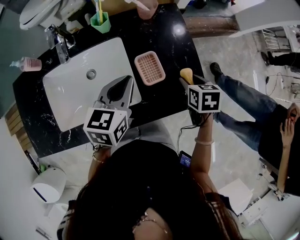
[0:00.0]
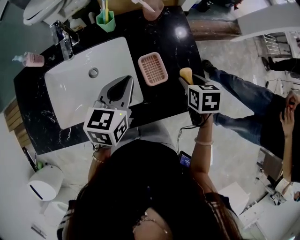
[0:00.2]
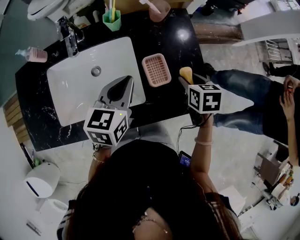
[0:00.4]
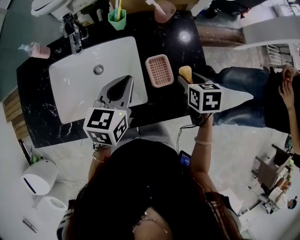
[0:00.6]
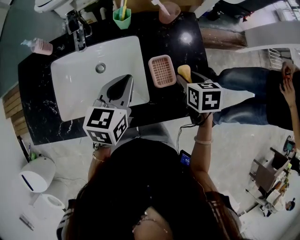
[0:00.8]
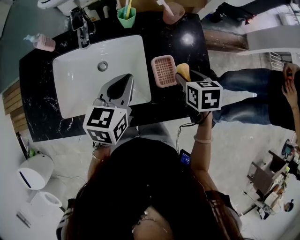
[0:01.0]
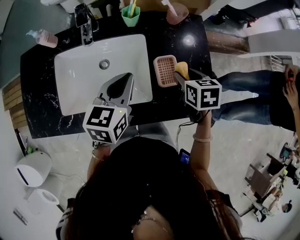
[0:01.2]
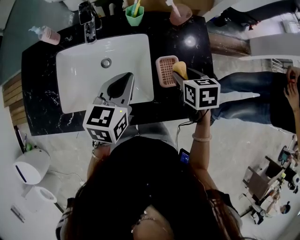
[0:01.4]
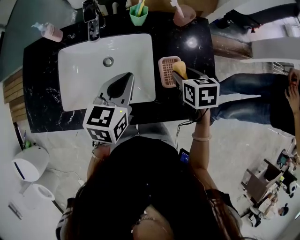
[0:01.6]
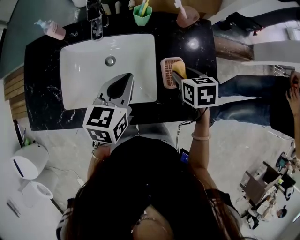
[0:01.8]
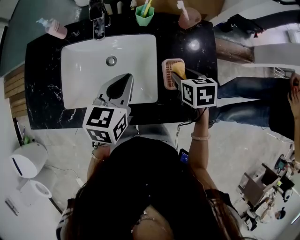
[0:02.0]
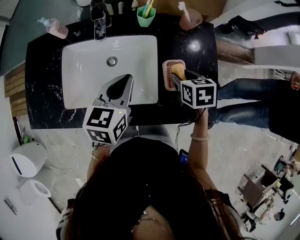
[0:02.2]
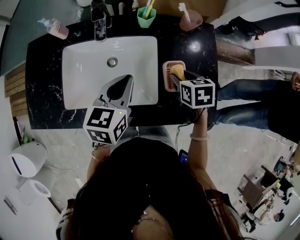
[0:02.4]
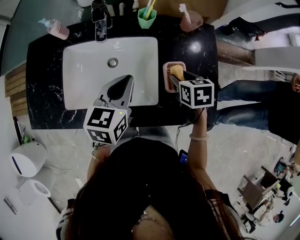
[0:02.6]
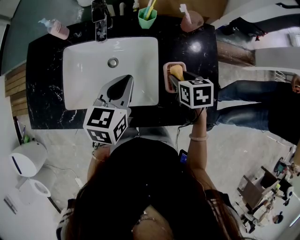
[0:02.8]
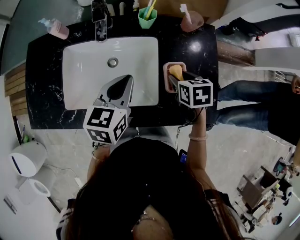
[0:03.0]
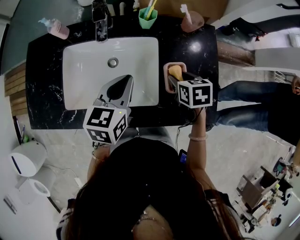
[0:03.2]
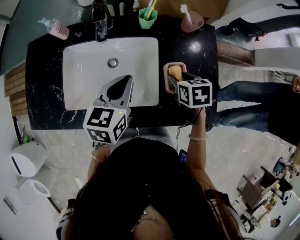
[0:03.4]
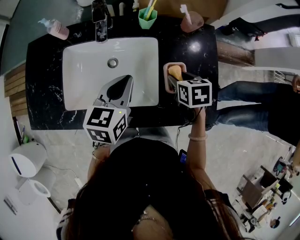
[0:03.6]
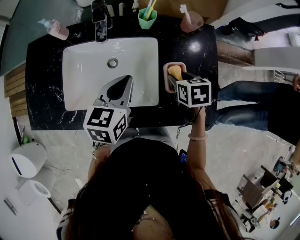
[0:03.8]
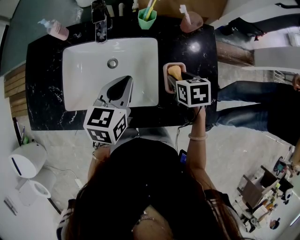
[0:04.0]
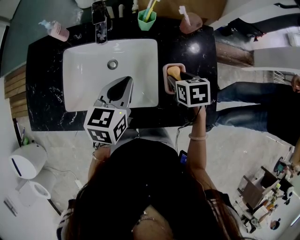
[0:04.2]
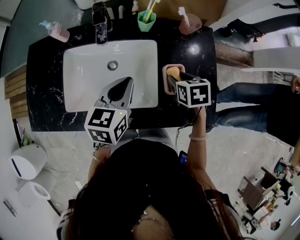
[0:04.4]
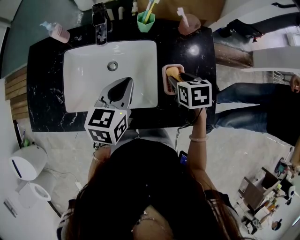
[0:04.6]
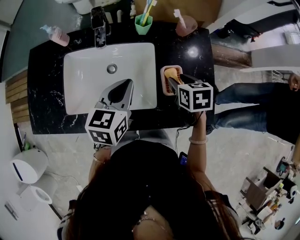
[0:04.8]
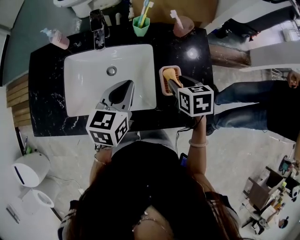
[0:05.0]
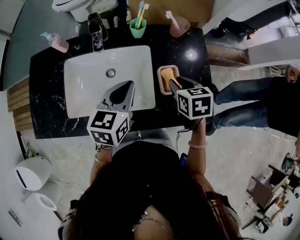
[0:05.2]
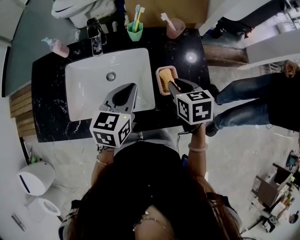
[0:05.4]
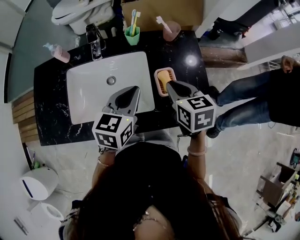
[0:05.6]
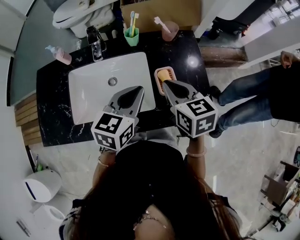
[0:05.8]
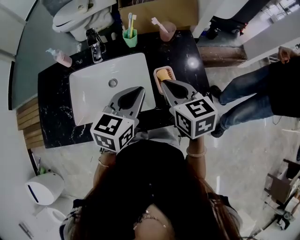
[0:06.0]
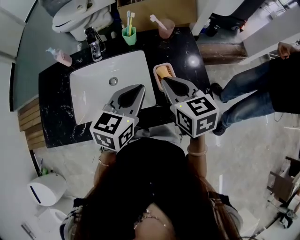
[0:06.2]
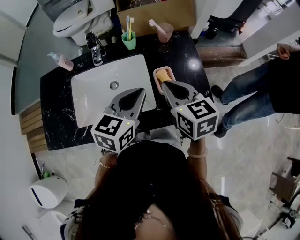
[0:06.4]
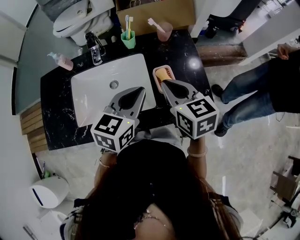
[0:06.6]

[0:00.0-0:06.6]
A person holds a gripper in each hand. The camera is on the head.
0:00.0 to 0:01.6: The left gripper moves to the left, about 10 cm. Meanwhile the right gripper is displaced to the left by about 10 cm.
0:01.6 to 0:05.0: There are only small adjustments of the grippers.
0:05.0 to 0:06.6: The right gripper travels upward and backward by some 15 cm, swivels roughly 30 degrees, and closes. The left gripper travels to the right, upward and backward by roughly 10 cm.

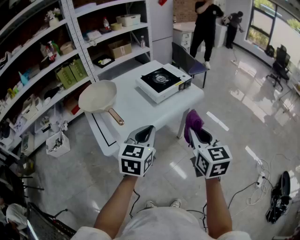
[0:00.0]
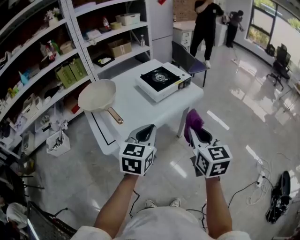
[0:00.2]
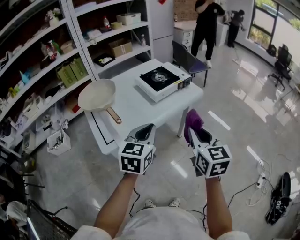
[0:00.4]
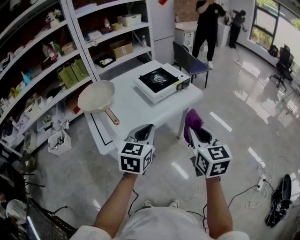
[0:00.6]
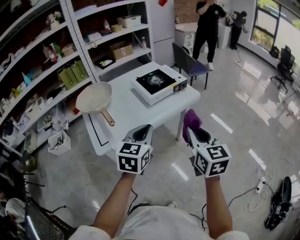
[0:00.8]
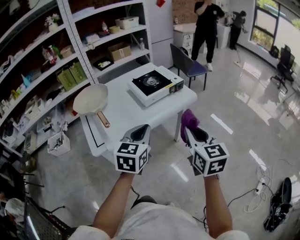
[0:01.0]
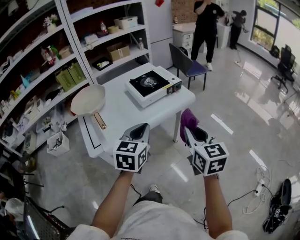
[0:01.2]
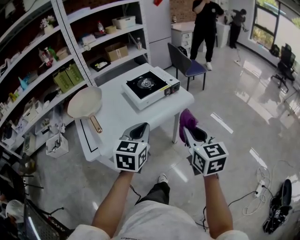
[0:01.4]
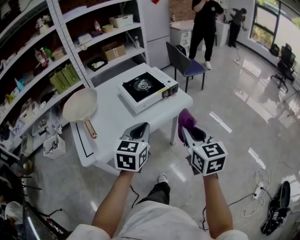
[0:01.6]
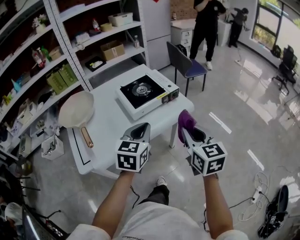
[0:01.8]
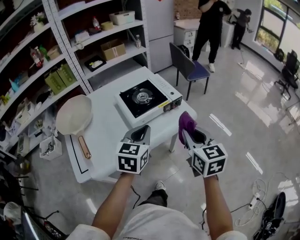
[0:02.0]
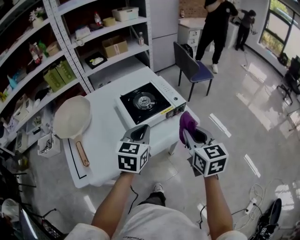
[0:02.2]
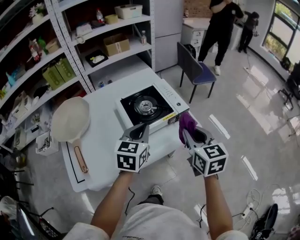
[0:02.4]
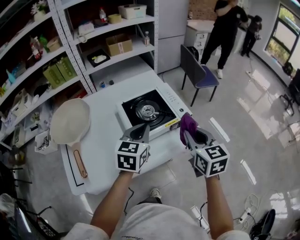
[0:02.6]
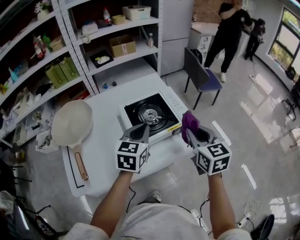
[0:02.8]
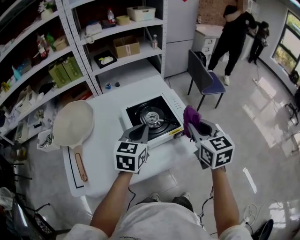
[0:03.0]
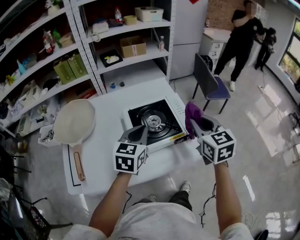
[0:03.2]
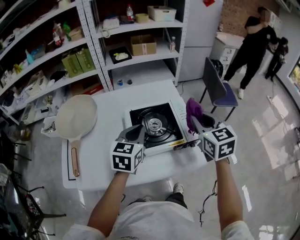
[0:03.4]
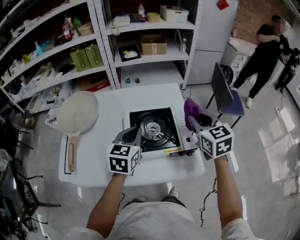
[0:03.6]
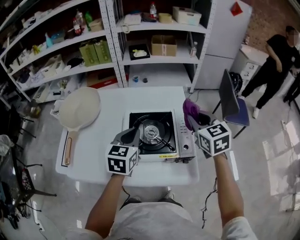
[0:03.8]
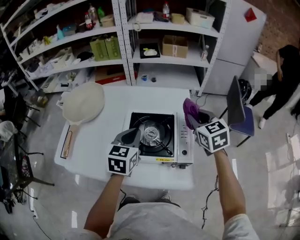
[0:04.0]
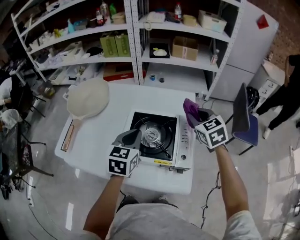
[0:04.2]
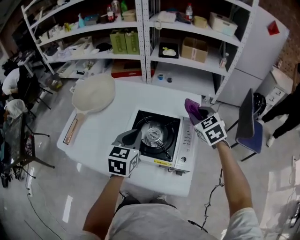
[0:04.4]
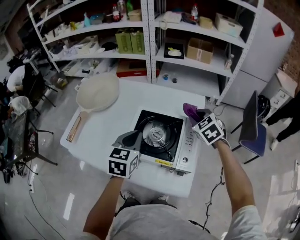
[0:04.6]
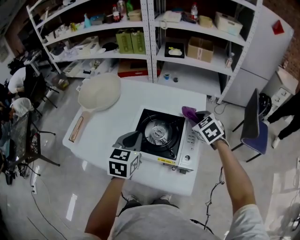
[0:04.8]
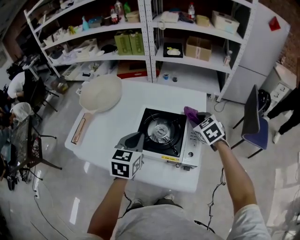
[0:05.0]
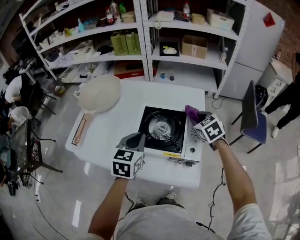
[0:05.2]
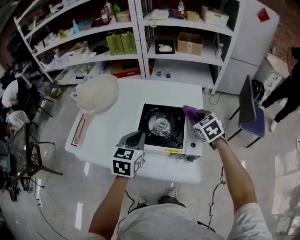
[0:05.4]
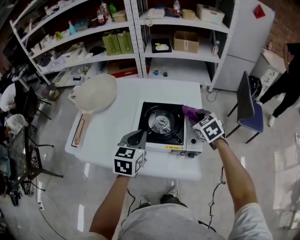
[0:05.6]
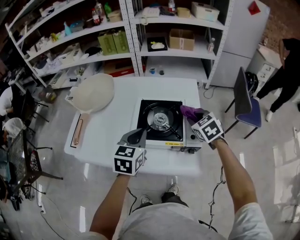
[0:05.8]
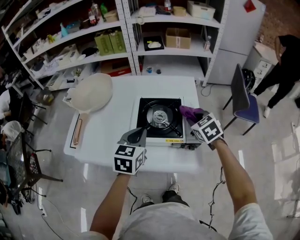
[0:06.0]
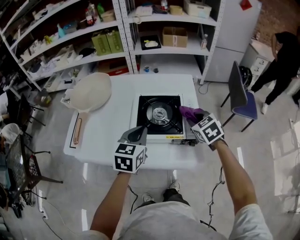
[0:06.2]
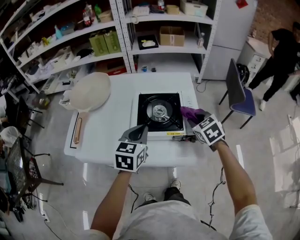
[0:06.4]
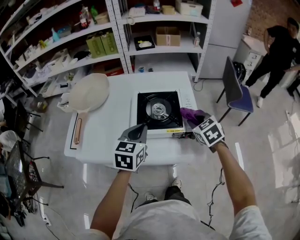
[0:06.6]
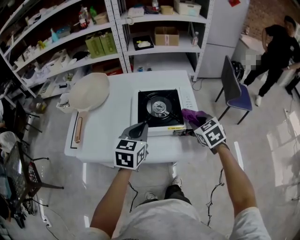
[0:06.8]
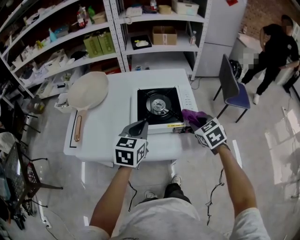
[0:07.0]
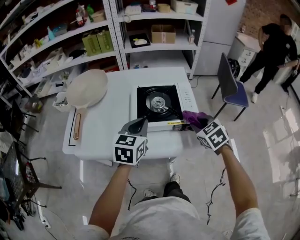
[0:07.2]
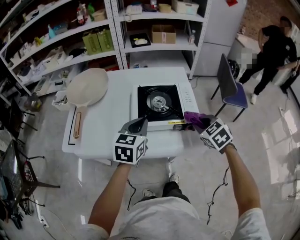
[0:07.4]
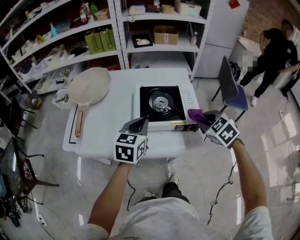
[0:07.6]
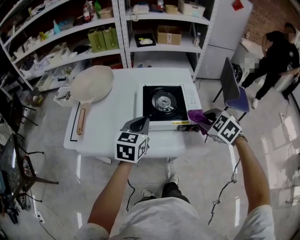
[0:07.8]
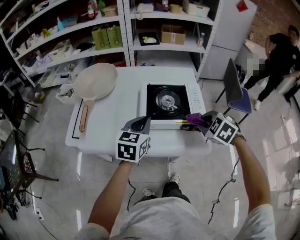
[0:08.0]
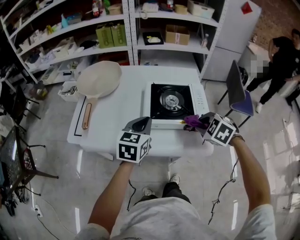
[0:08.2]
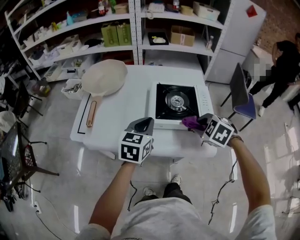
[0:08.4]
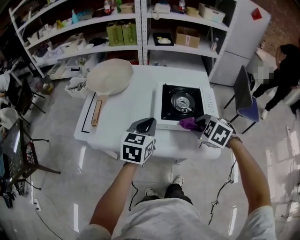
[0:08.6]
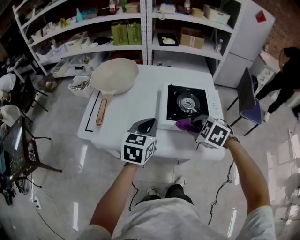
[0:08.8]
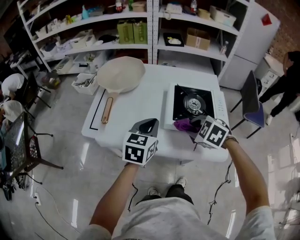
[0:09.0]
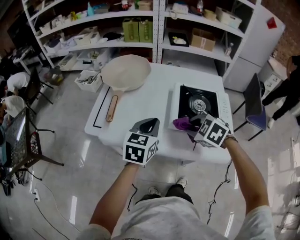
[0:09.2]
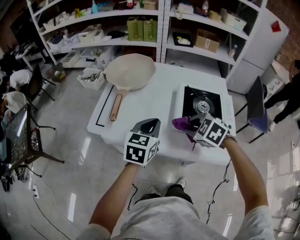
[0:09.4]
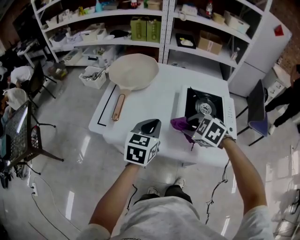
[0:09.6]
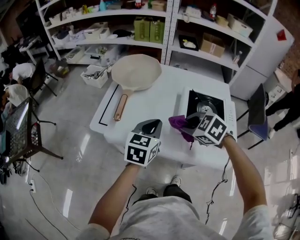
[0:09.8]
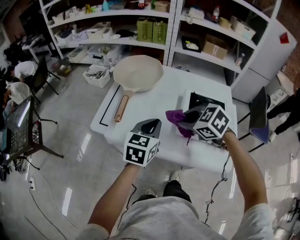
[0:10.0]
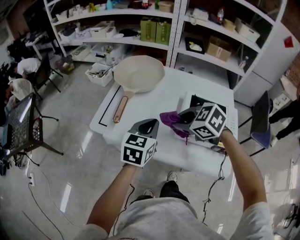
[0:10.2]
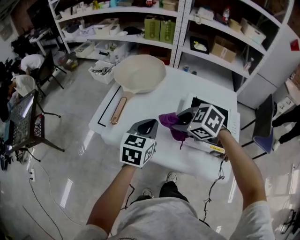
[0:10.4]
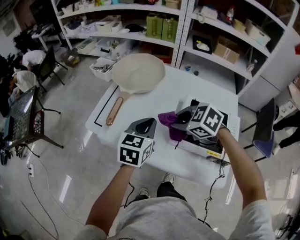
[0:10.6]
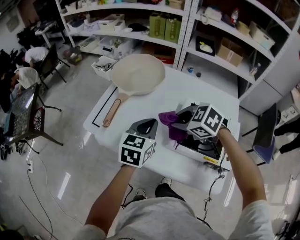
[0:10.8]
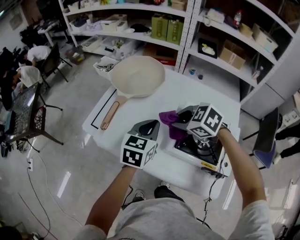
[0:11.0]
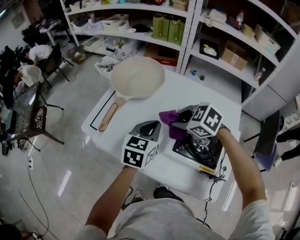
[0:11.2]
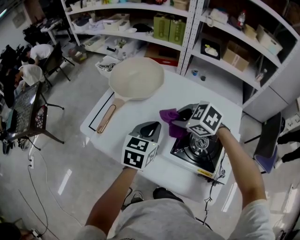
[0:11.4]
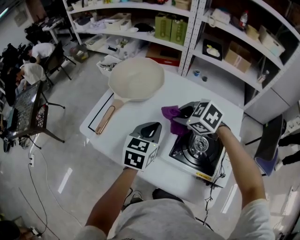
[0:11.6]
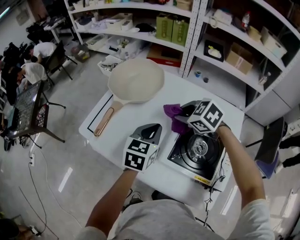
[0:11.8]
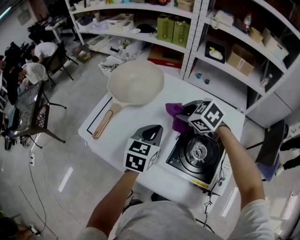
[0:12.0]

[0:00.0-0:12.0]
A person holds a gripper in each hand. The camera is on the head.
0:00.0 to 0:01.6: The two grippers go approximately 15 cm to the right and forward.
0:01.6 to 0:03.0: Both grippers move forward, approximately 30 cm.
0:03.0 to 0:04.4: The left gripper moves about 5 cm, and changes its angle by roughly 40 degrees, while the right gripper changes place by about 30 cm, and changes its angle by roughly 50 degrees.
0:04.4 to 0:06.0: The left gripper heads backward, covering about 5 cm, while the right gripper heads backward and downward, covering about 15 cm.
0:06.0 to 0:07.6: The right gripper travels backward by approximately 15 cm.
0:07.6 to 0:09.0: The left gripper is displaced to the left by some 10 cm, while the right gripper travels to the left by about 20 cm, and rotates some 30 degrees.
0:09.0 to 0:10.4: The left gripper is displaced forward by roughly 5 cm, while the right gripper goes about 15 cm forward and to the left, and rotates roughly 20 degrees.
0:10.4 to 0:12.0: Both grippers move to the right and forward, some 15 cm.

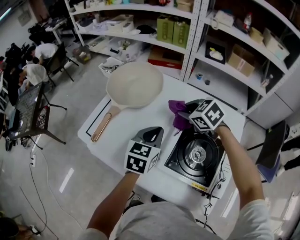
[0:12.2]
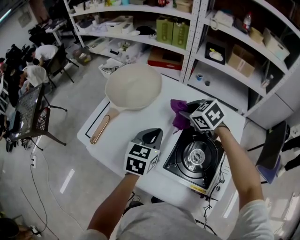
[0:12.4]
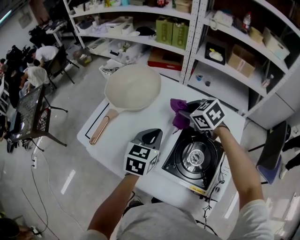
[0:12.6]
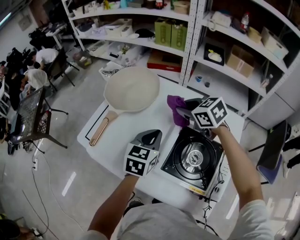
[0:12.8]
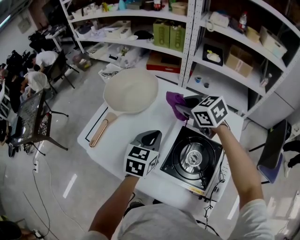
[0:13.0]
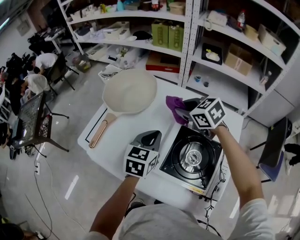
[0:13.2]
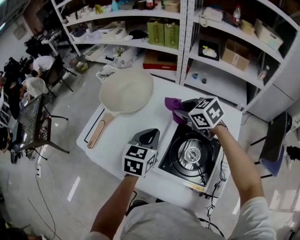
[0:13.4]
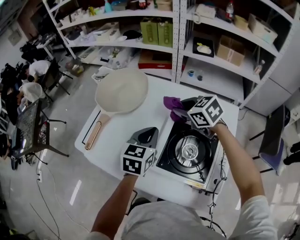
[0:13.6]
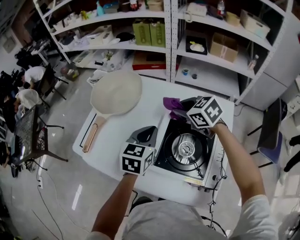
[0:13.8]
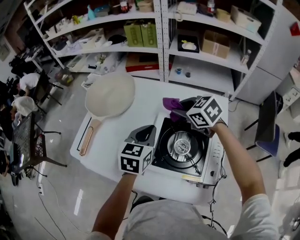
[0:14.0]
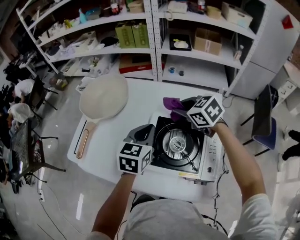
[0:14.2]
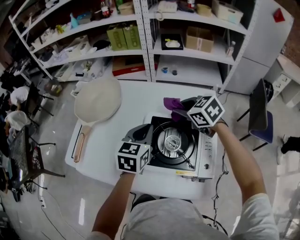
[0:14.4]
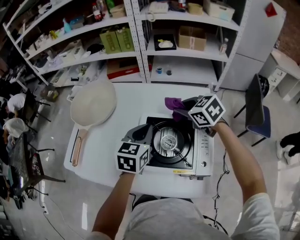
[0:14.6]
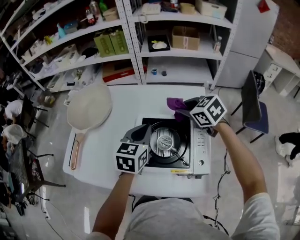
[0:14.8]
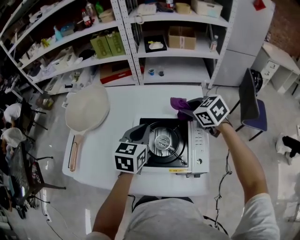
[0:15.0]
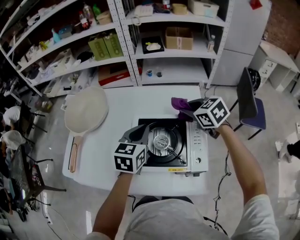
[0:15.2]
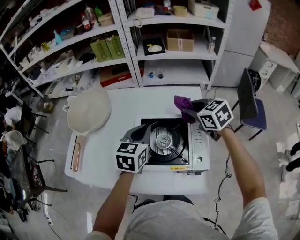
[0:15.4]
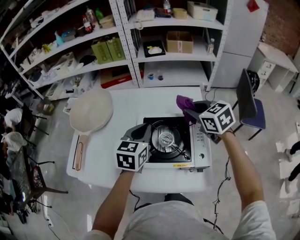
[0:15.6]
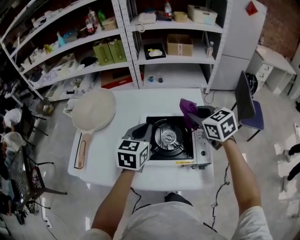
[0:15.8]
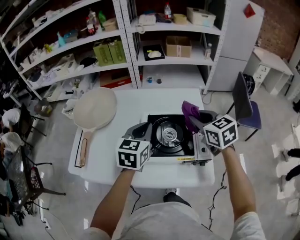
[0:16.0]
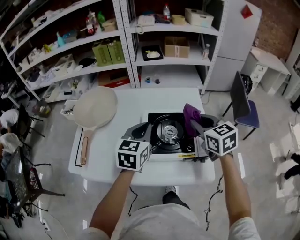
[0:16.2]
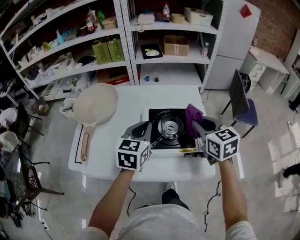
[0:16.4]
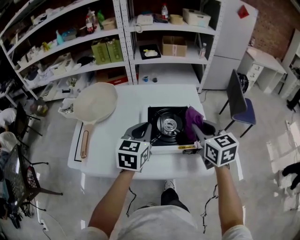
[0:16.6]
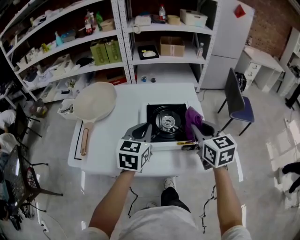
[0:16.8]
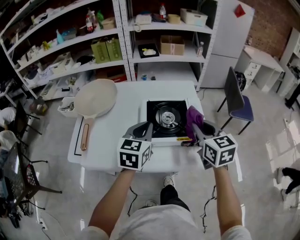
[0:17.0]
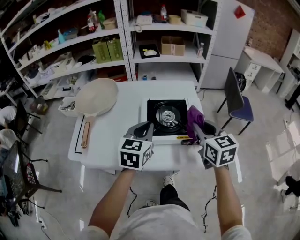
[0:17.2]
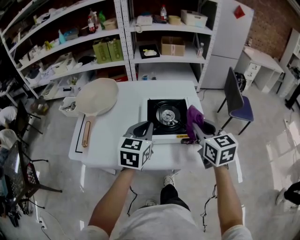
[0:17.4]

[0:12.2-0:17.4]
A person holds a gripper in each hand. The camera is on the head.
0:12.2 to 0:14.0: The two grippers go some 5 cm to the right.
0:14.0 to 0:15.6: The left gripper is displaced to the right by approximately 5 cm. Meanwhile the right gripper heads to the right and backward, covering roughly 15 cm, and turns by about 30 degrees.
0:15.6 to 0:17.4: The left gripper goes roughly 15 cm backward, while the right gripper moves backward, roughly 20 cm, and rotates about 30 degrees.
